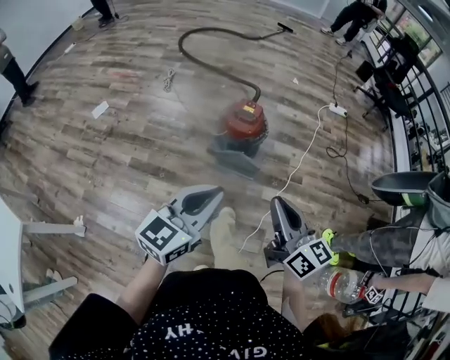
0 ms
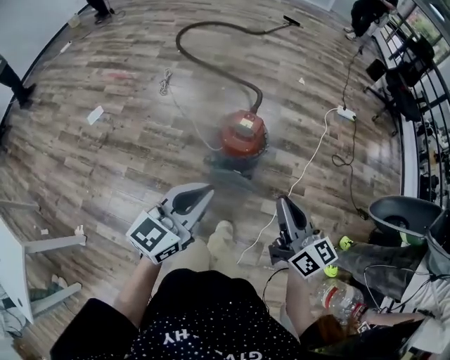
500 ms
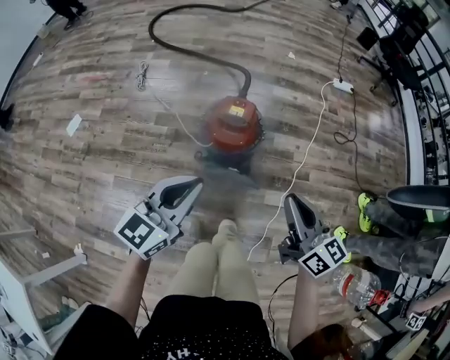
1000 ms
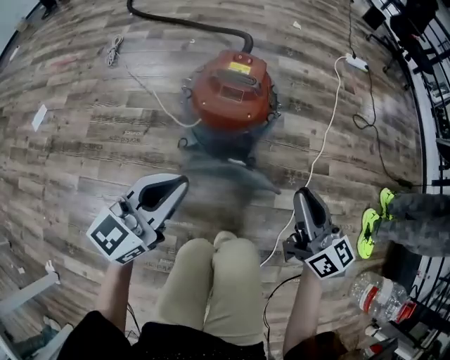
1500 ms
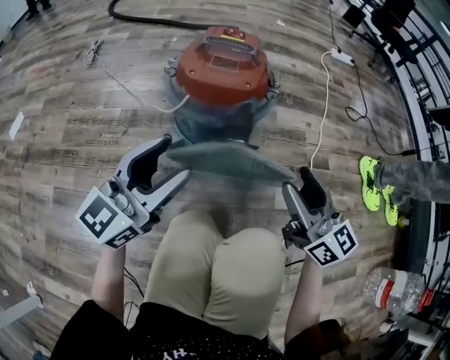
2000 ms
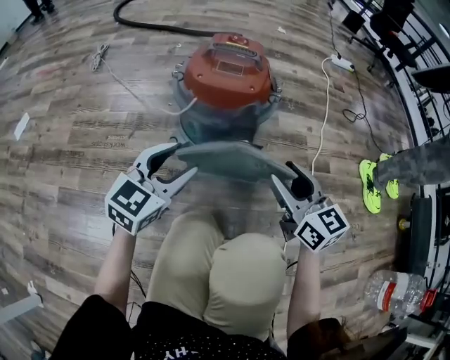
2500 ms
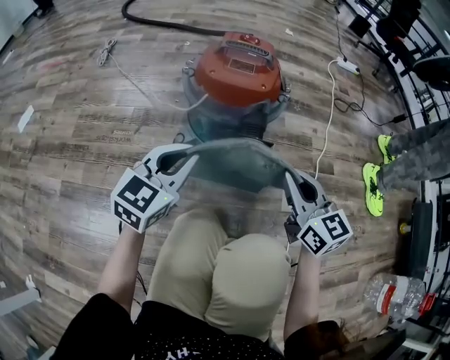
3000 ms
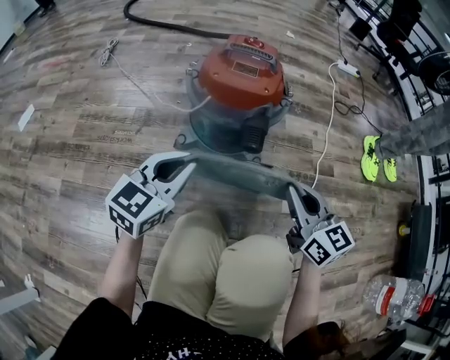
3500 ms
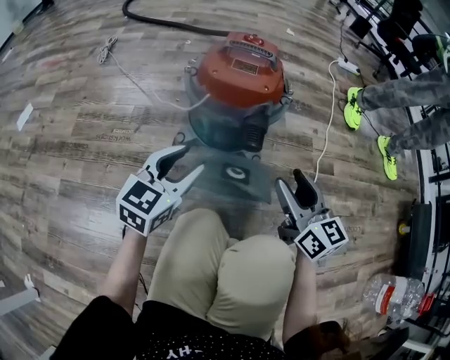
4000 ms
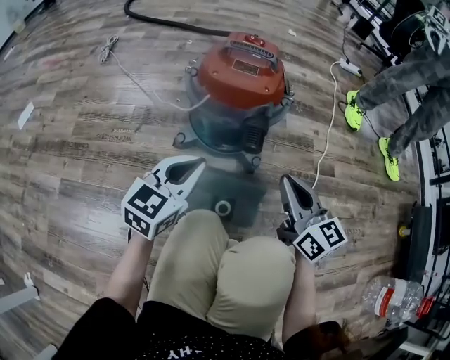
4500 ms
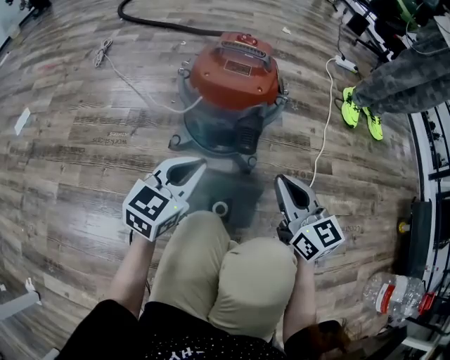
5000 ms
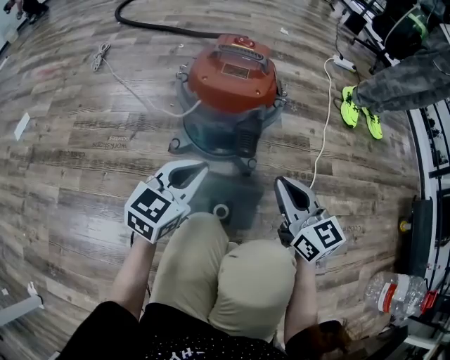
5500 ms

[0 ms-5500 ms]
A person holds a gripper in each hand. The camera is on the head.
0 ms to 2000 ms: Both grippers move downward and forward, about 60 cm. The right gripper opens its fingers. The left gripper opens its fingers.
2000 ms to 3500 ms: The right gripper closes; the left gripper shifts approximately 5 cm downward, and closes its fingers.
3500 ms to 5500 ms: The right gripper opens, then closes again. Meanwhile the left gripper changes place by approximately 5 cm, and opens and closes again.

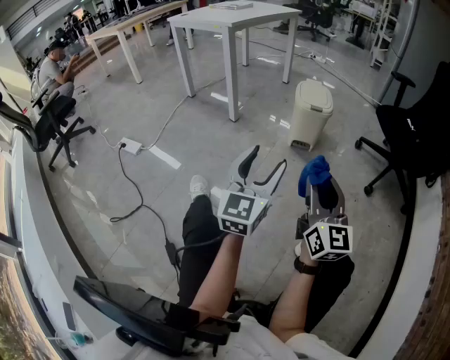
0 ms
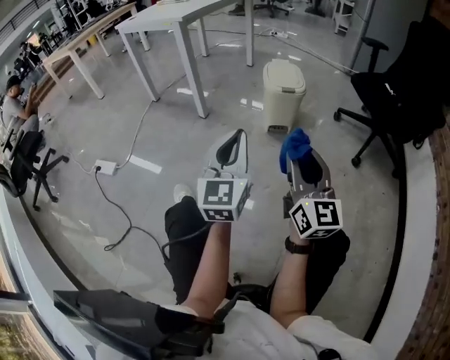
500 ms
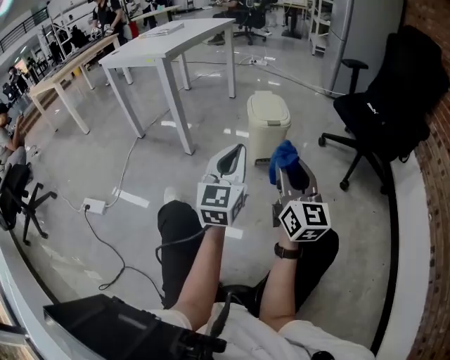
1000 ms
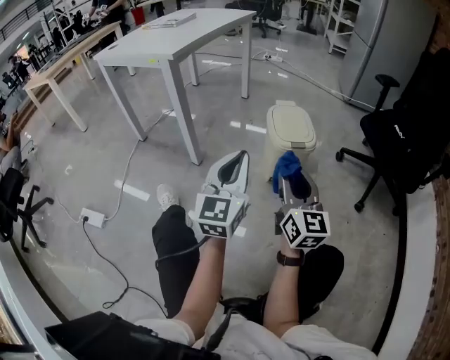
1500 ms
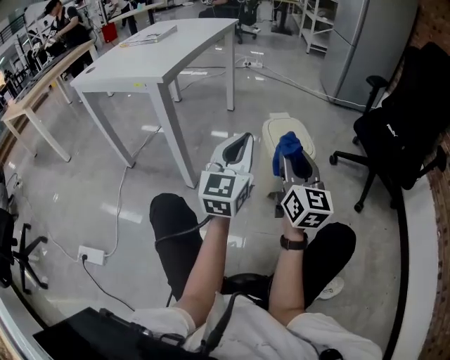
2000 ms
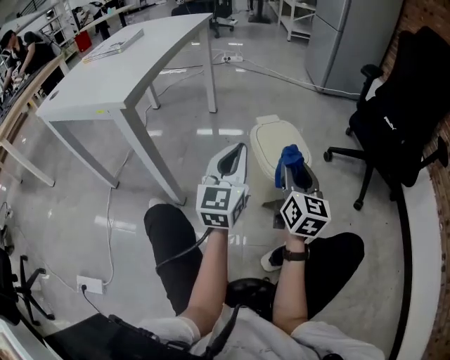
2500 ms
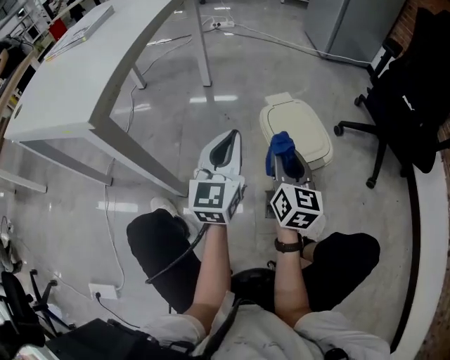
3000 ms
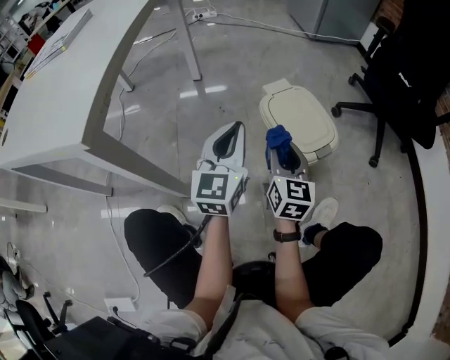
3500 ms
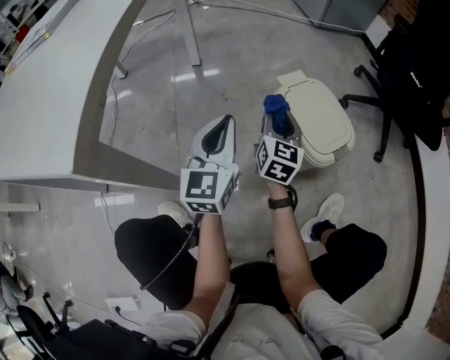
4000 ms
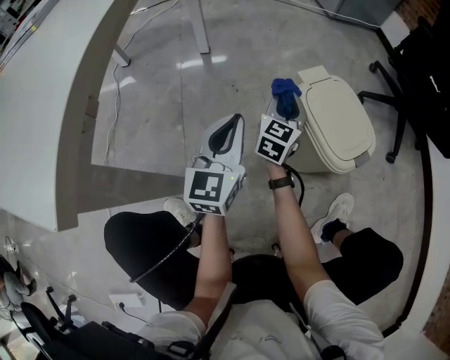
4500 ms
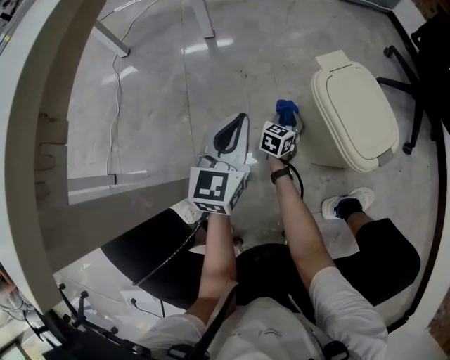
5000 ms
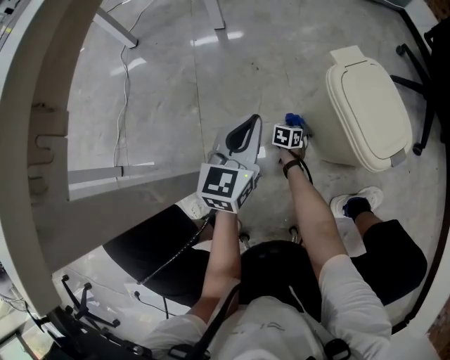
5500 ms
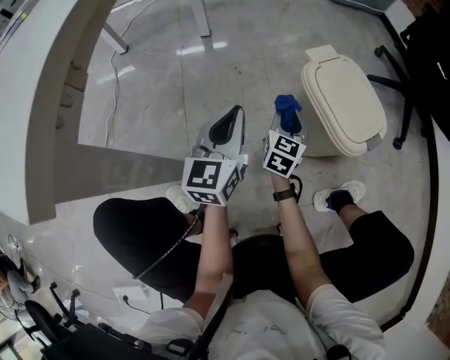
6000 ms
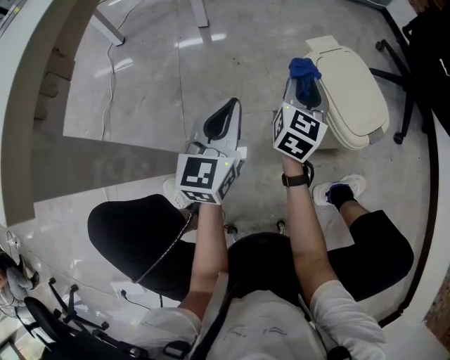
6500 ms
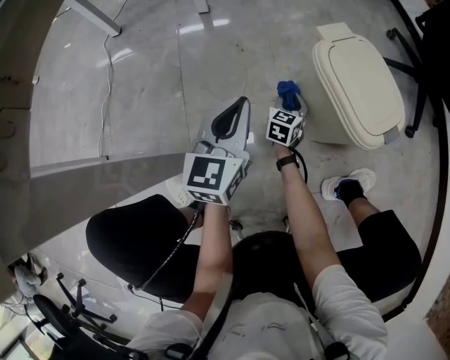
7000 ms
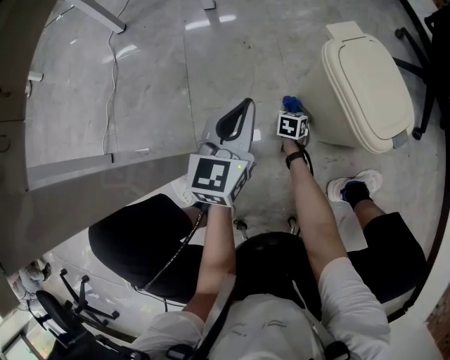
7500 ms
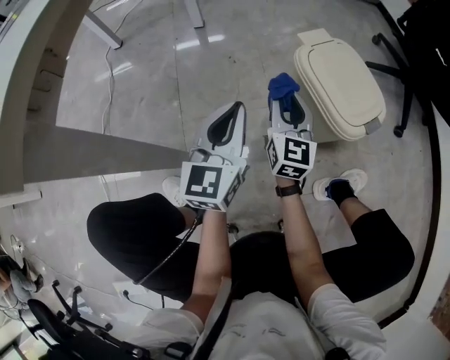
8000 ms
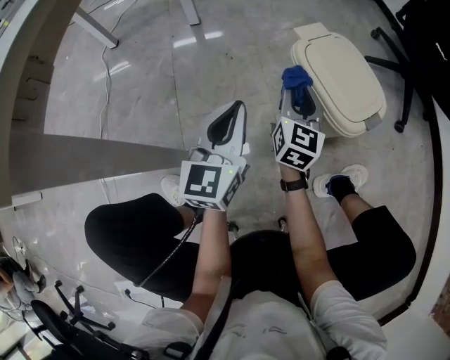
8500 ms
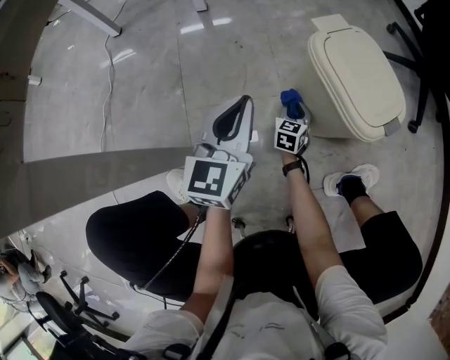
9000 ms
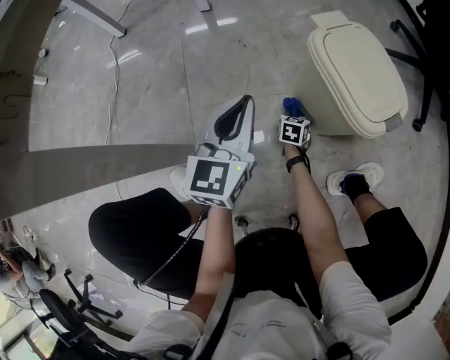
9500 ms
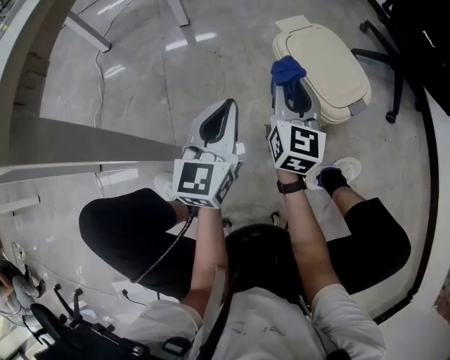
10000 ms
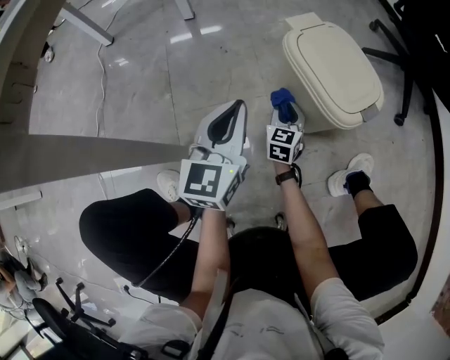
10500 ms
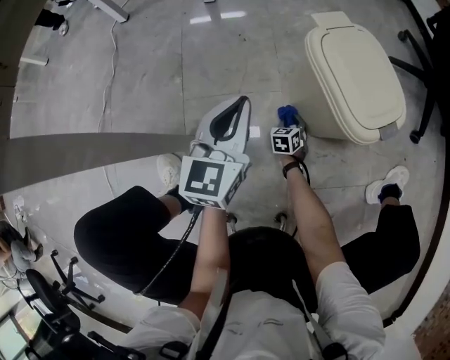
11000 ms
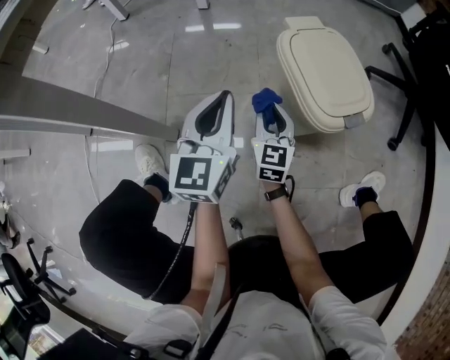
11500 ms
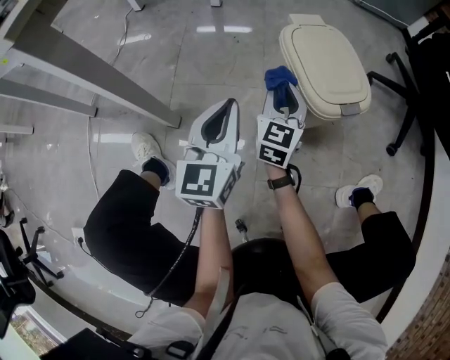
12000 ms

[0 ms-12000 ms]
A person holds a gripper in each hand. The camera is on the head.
0 ms to 2000 ms: Both grippers are carried forward, roughly 40 cm. The left gripper closes its fingers.
2000 ms to 4000 ms: The two grippers go approximately 35 cm forward, downward and to the left. The right gripper changes its angle by roughly 30 degrees.
4000 ms to 6000 ms: The right gripper reaches some 40 cm downward, then returns. Meanwhile the left gripper moves downward, roughly 10 cm.
6000 ms to 8000 ms: The right gripper swings up and down, some 35 cm each way, with 2 reversals, and swivels approximately 20 degrees.
8000 ms to 10000 ms: The right gripper reaches approximately 35 cm downward, then returns.
10000 ms to 12000 ms: The left gripper travels backward by some 5 cm. Meanwhile the right gripper reaches roughly 40 cm downward, then returns.

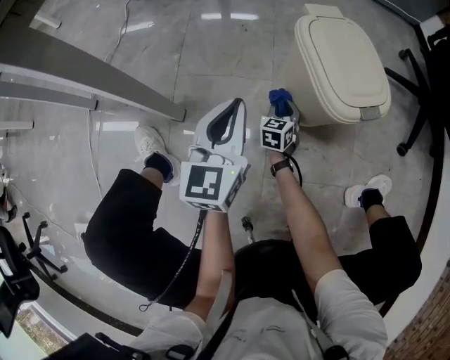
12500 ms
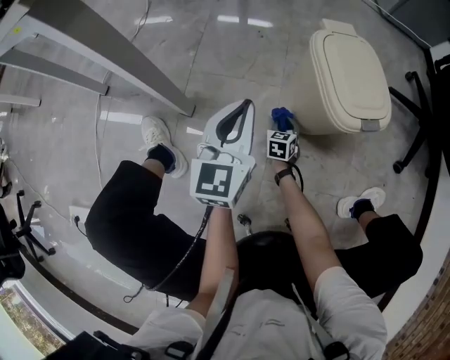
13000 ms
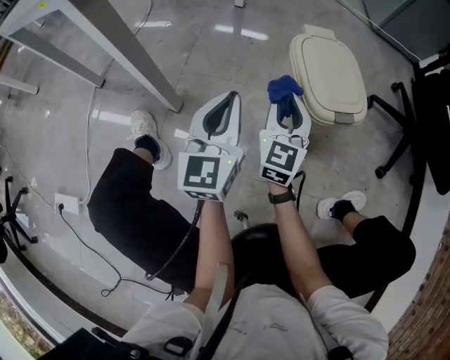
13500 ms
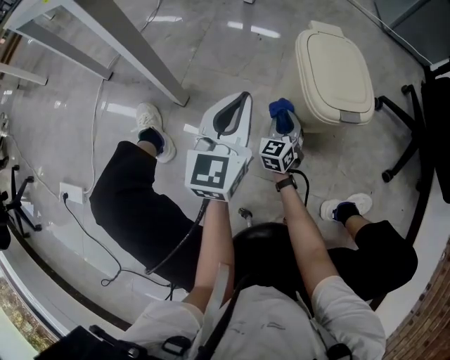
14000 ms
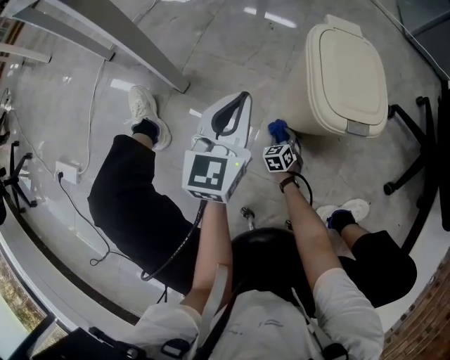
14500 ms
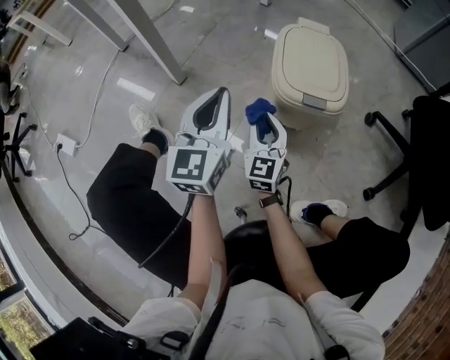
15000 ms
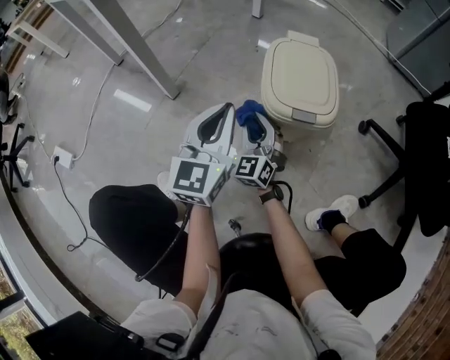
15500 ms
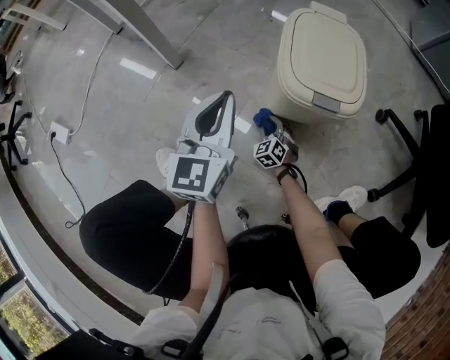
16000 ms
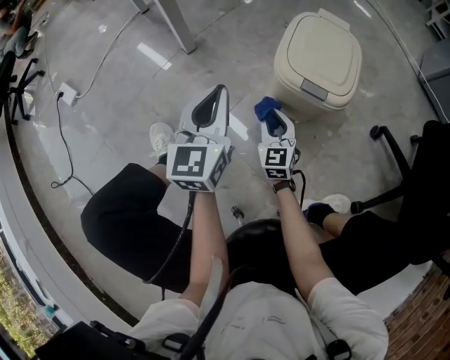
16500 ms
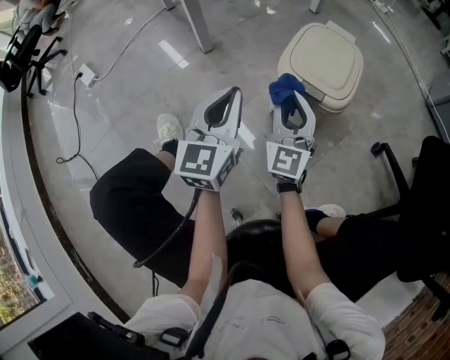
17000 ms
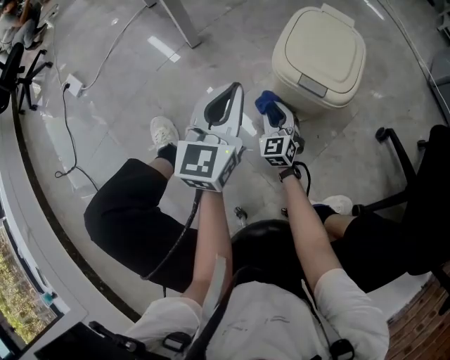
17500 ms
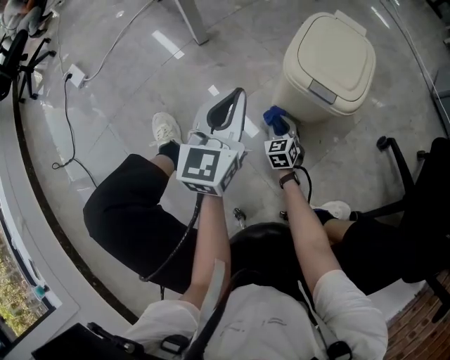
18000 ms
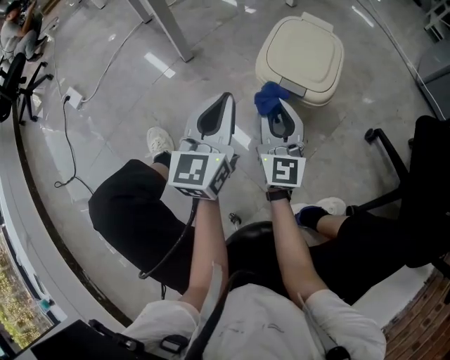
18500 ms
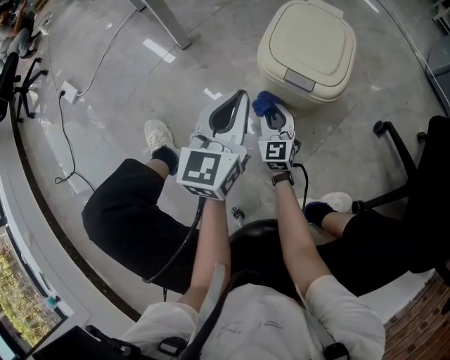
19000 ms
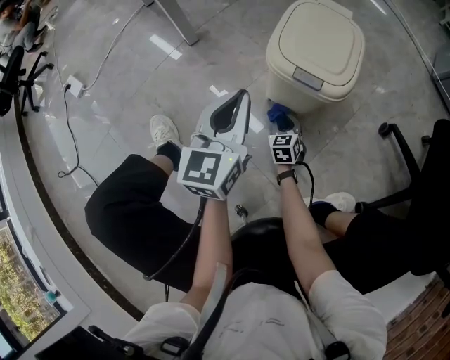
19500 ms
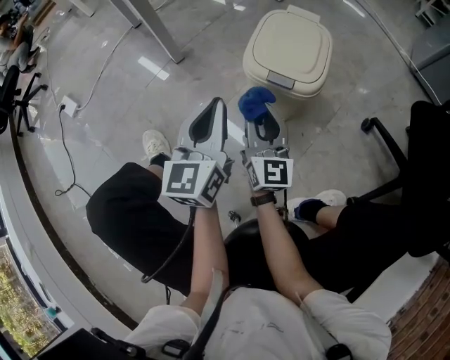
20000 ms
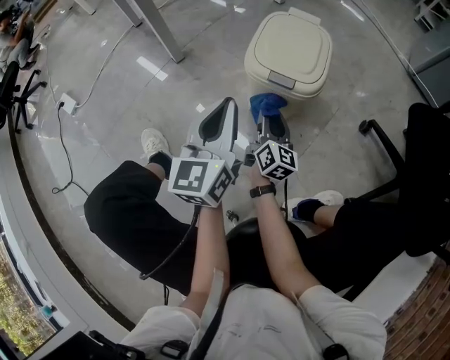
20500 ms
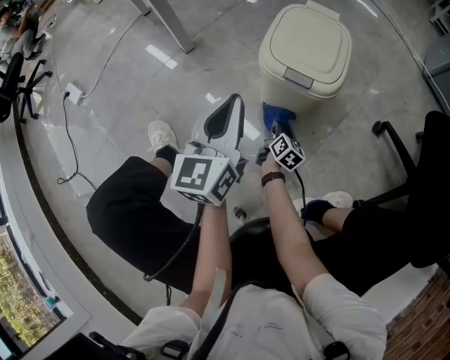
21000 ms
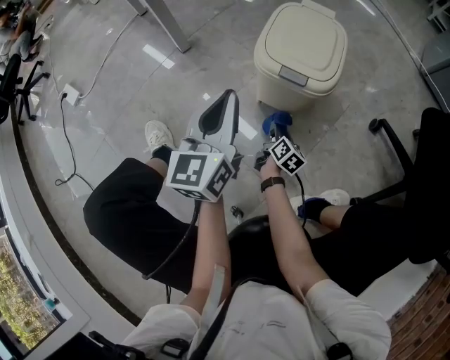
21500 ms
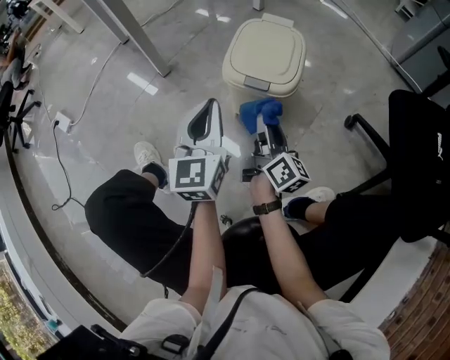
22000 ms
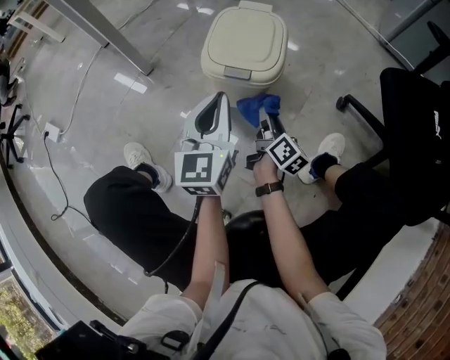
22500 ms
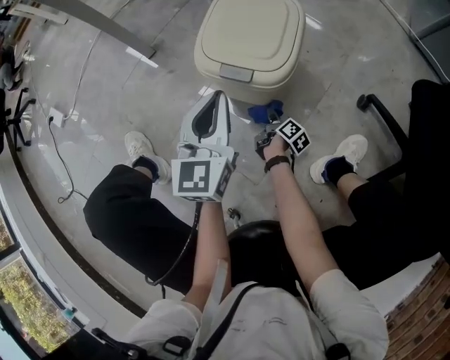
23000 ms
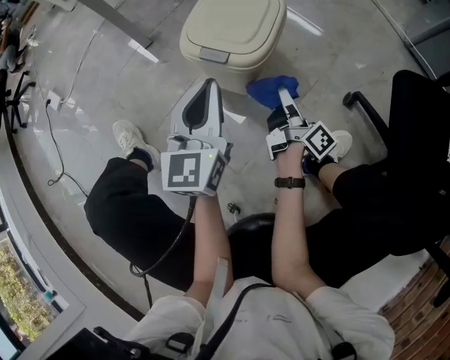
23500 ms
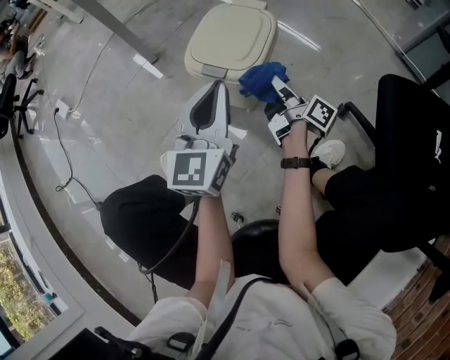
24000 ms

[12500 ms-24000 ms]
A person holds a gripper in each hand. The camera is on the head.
12500 ms to 14500 ms: The right gripper moves up and down over some 40 cm, changing direction 2 times, and turns by some 40 degrees.
14500 ms to 16500 ms: The right gripper moves up and down over about 35 cm, changing direction 2 times, and points its fingers some 30 degrees further upward; the left gripper shifts by approximately 15 cm, and changes its angle by approximately 30 degrees.
16500 ms to 18500 ms: The left gripper goes some 5 cm to the right. Meanwhile the right gripper moves up and down over about 30 cm, changing direction 2 times, and changes its angle by roughly 30 degrees.
18500 ms to 20000 ms: The right gripper travels downward and back again, roughly 35 cm each way.
20000 ms to 22000 ms: The right gripper heads to the right, covering roughly 10 cm, goes downward and returns, approximately 30 cm each way, and rolls clockwise, seen from behind, by some 40 degrees.
22000 ms to 24000 ms: The right gripper heads to the right and forward, covering about 15 cm, moves approximately 30 cm downward and comes back, and turns by roughly 40 degrees, while the left gripper goes approximately 10 cm to the right.
